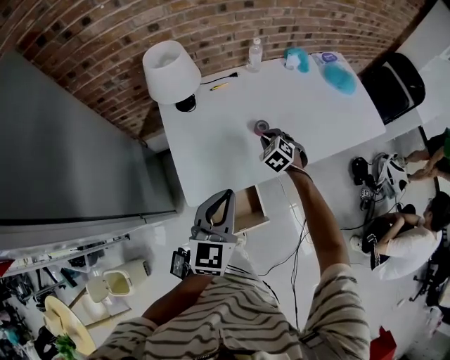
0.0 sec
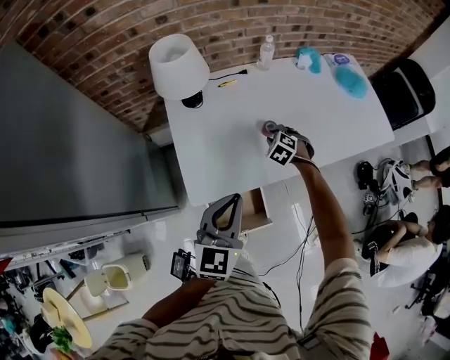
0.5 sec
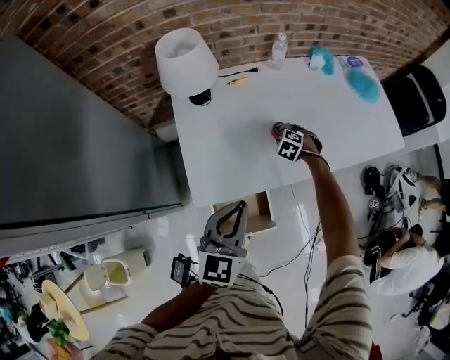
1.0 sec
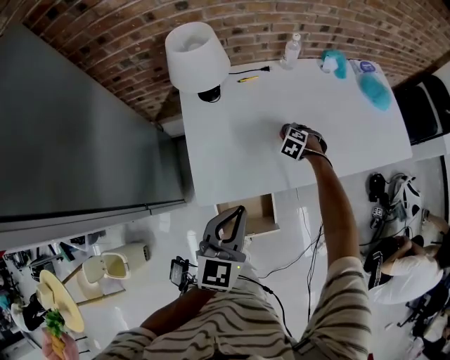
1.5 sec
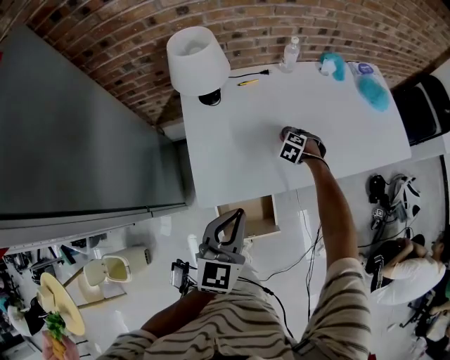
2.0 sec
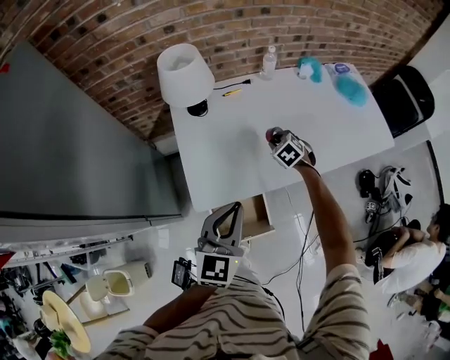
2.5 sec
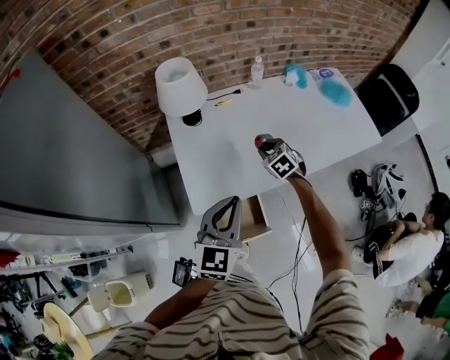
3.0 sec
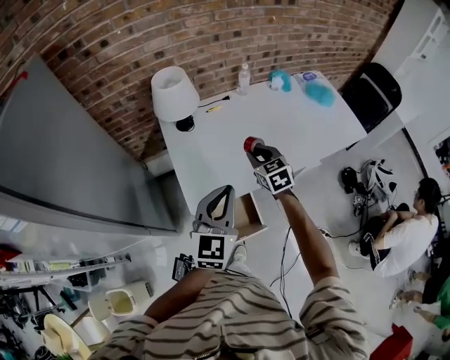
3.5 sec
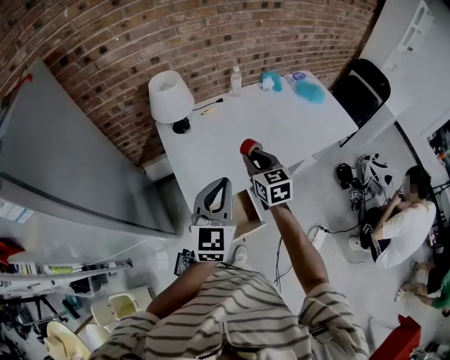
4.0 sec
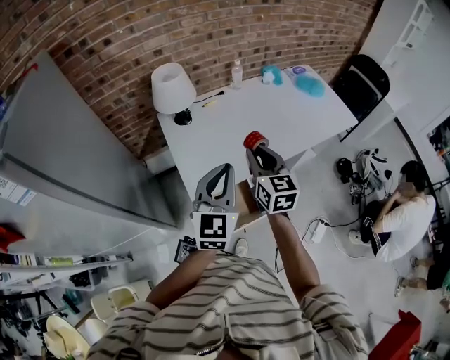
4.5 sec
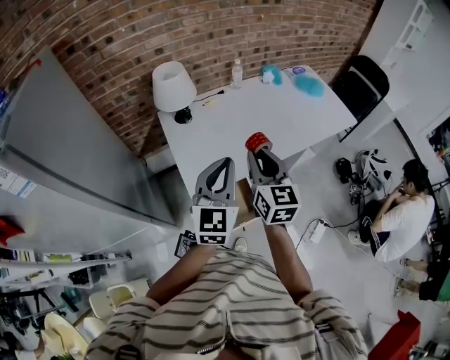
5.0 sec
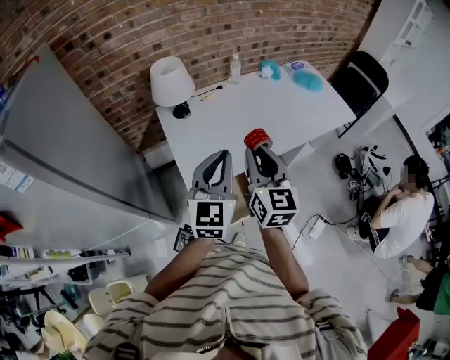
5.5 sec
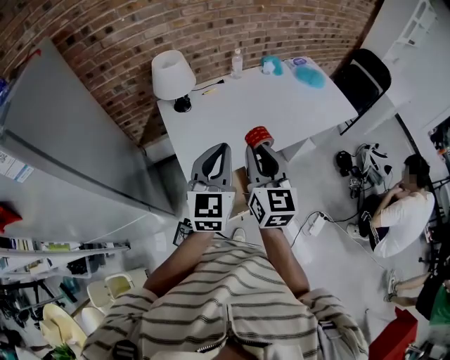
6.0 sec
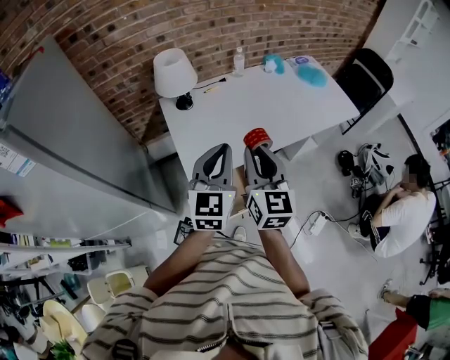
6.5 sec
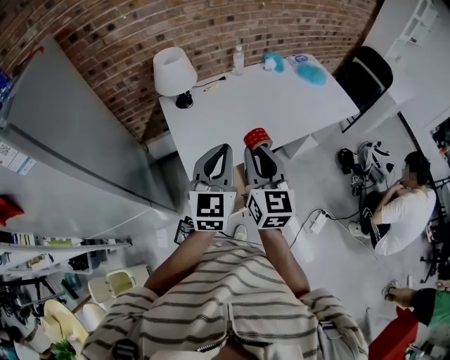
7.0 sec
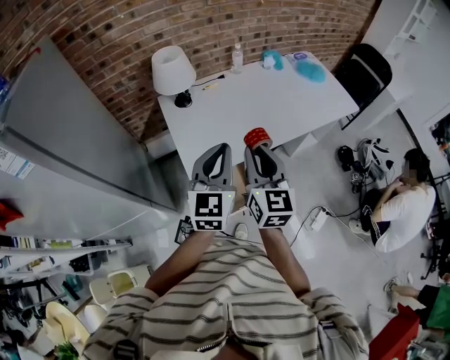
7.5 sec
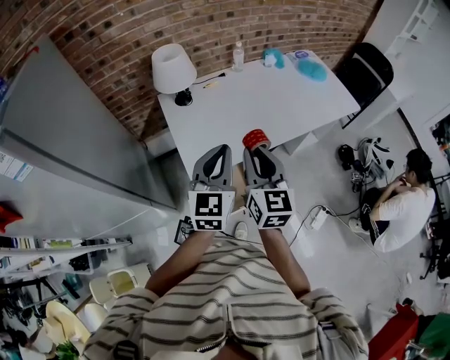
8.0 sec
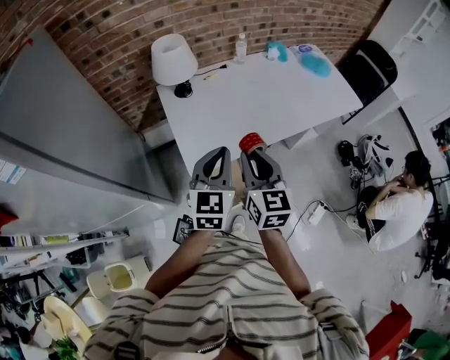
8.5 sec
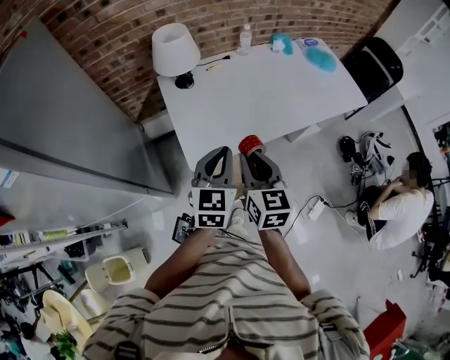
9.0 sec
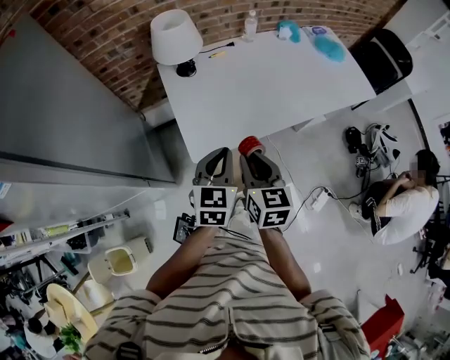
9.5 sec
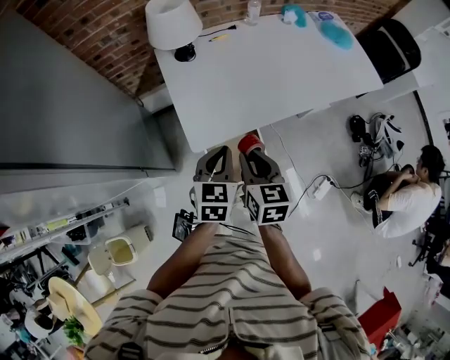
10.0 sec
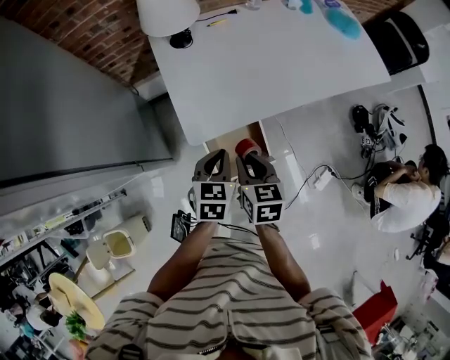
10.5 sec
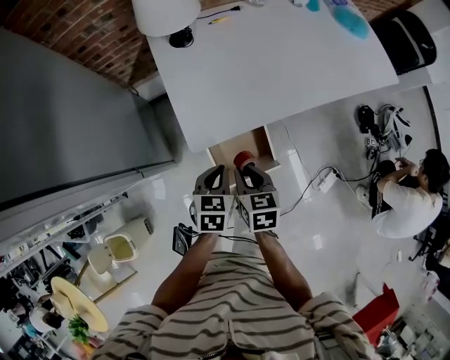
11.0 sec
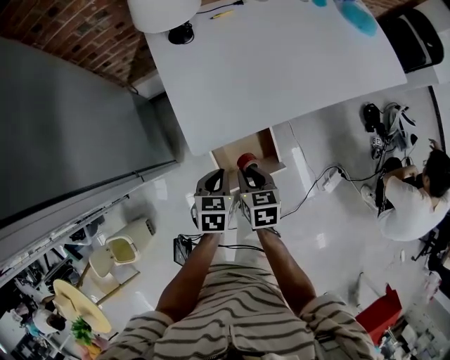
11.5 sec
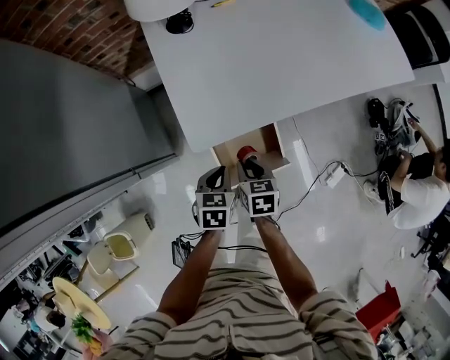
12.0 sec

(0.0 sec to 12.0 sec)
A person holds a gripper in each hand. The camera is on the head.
0.0 sec - 2.0 sec: The right gripper moves downward and forward, roughly 15 cm, and swivels approximately 30 degrees.
2.0 sec - 4.0 sec: The right gripper shifts roughly 40 cm upward and backward, and angles its fingers upward, by some 50 degrees. The left gripper is displaced upward by approximately 10 cm.
4.0 sec - 6.0 sec: The right gripper heads backward and upward, covering roughly 15 cm, and rotates some 20 degrees.
6.0 sec - 8.0 sec: The grippers move only a little.
8.0 sec - 10.0 sec: The grippers both shift downward by roughly 15 cm. The left gripper changes its angle by about 30 degrees; the right gripper swivels about 30 degrees.
10.0 sec - 12.0 sec: Both grippers travel together downward, some 25 cm. The left gripper turns by some 30 degrees, while the right gripper swivels roughly 20 degrees.

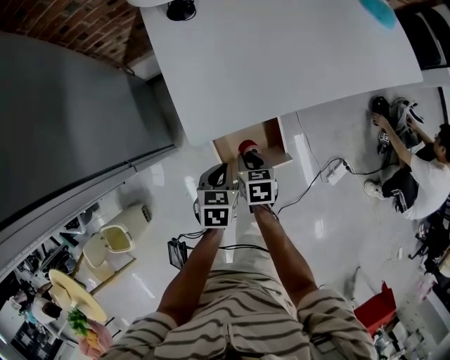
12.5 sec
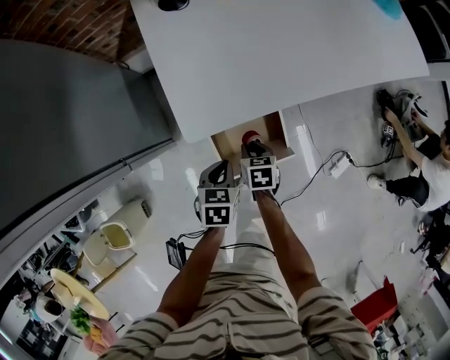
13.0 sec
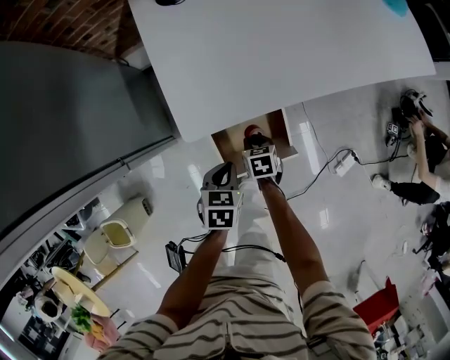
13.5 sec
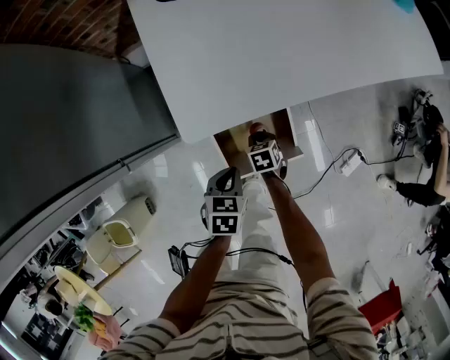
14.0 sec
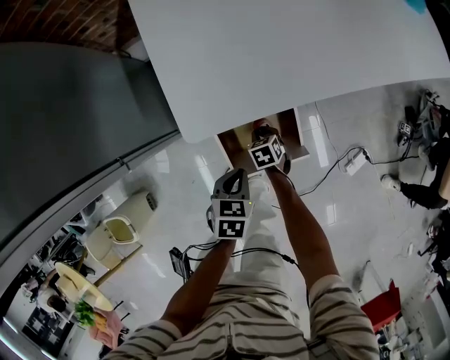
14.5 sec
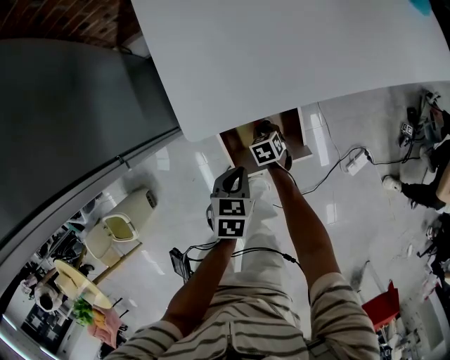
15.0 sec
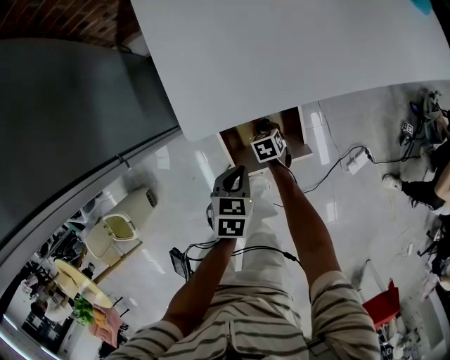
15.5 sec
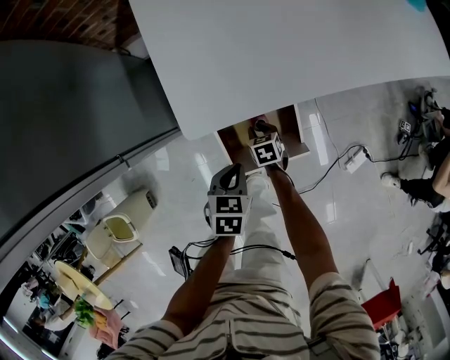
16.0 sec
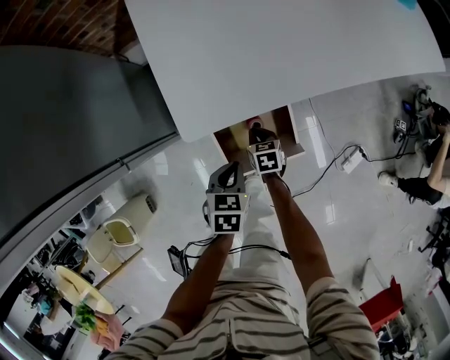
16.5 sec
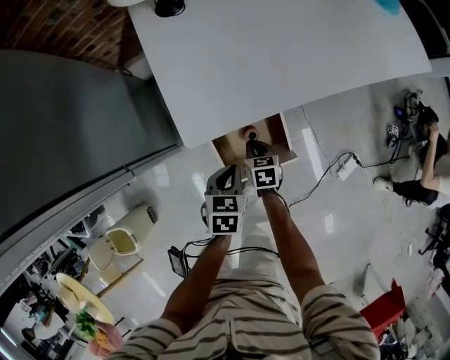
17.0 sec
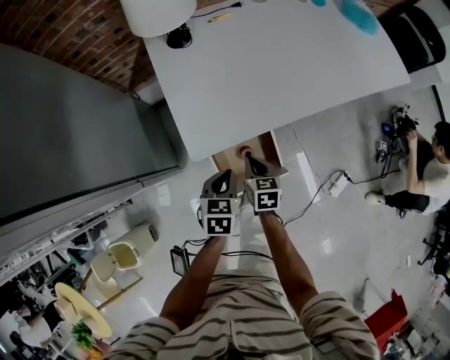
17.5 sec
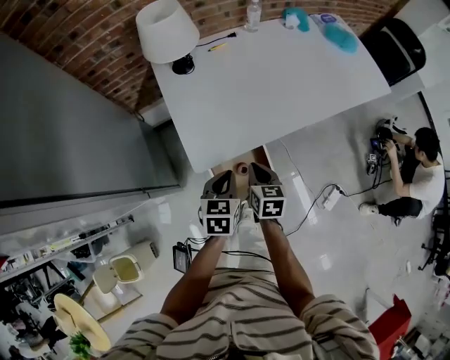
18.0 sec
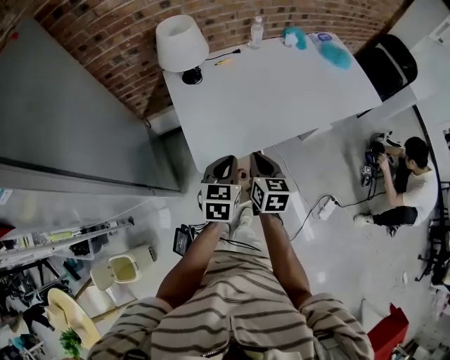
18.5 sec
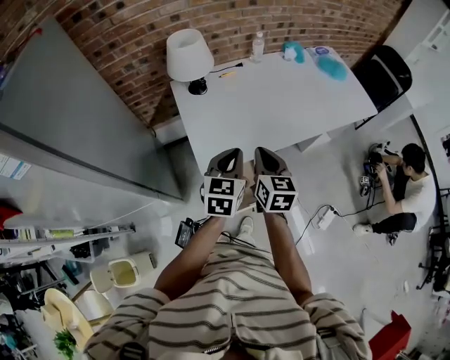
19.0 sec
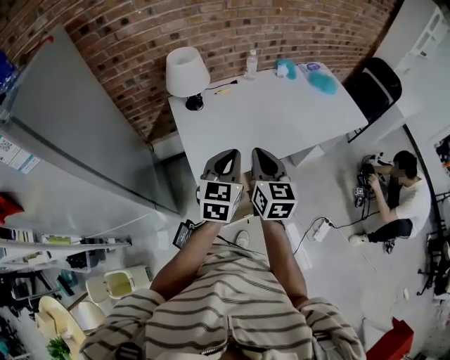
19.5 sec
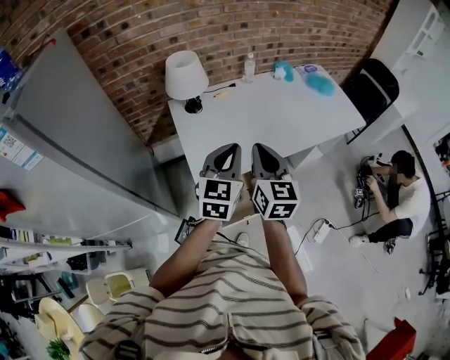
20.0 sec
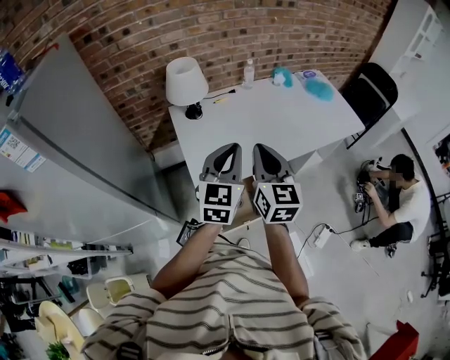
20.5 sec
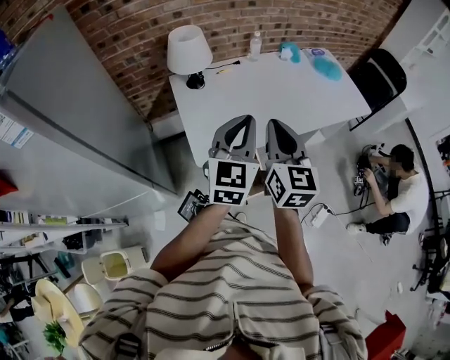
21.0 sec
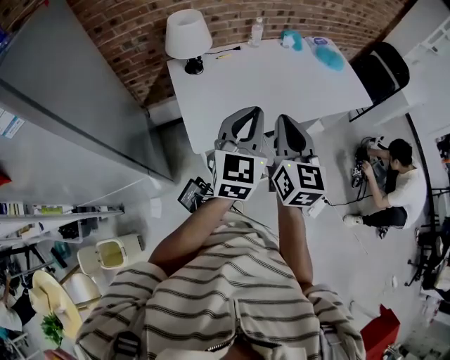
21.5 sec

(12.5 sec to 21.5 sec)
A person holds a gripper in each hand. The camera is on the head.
12.5 sec - 14.5 sec: The right gripper travels downward by some 20 cm, and changes its angle by some 20 degrees, while the left gripper shifts approximately 5 cm downward.
14.5 sec - 17.0 sec: The left gripper heads upward, covering some 5 cm. The right gripper is displaced upward by roughly 10 cm, and turns by some 20 degrees.
17.0 sec - 19.5 sec: Both grippers move upward, some 40 cm. The right gripper angles its fingers upward, by approximately 40 degrees, while the left gripper points its fingers approximately 40 degrees further upward.
19.5 sec - 21.5 sec: The grippers both shift upward by about 5 cm.

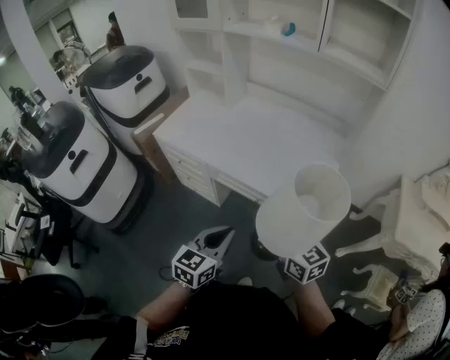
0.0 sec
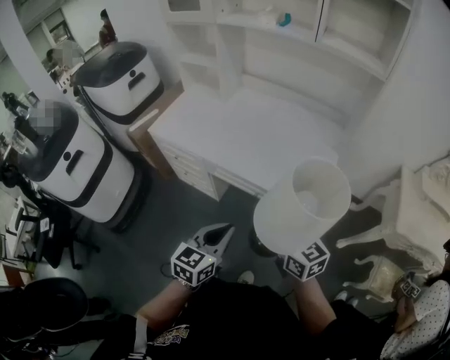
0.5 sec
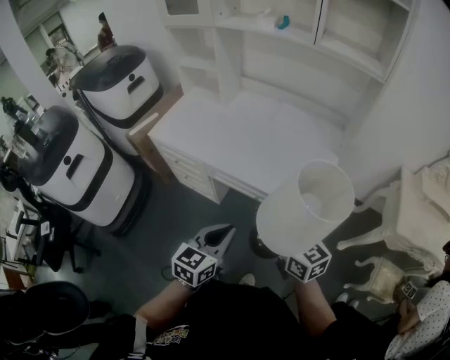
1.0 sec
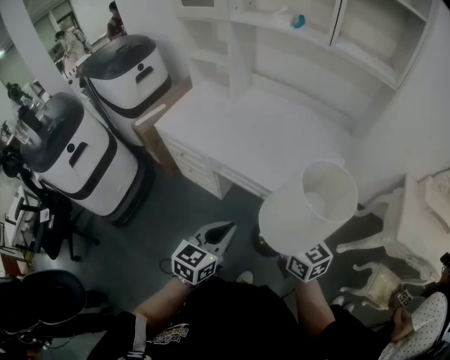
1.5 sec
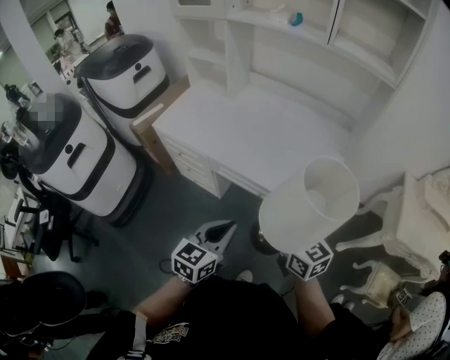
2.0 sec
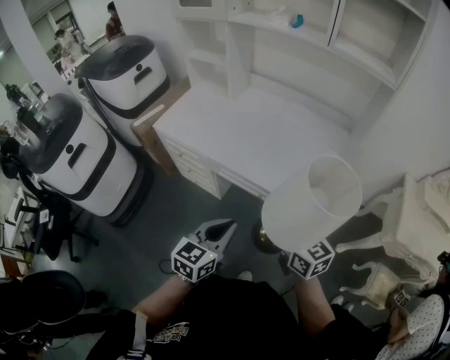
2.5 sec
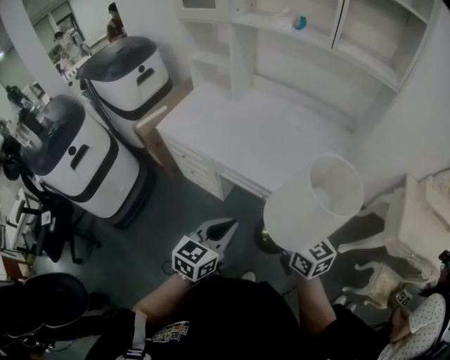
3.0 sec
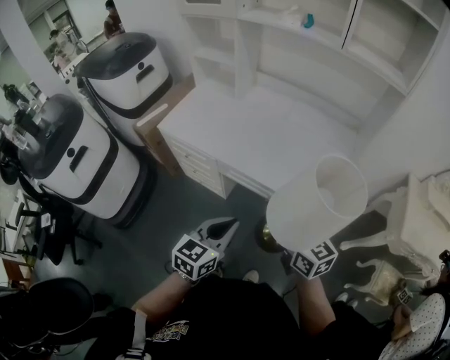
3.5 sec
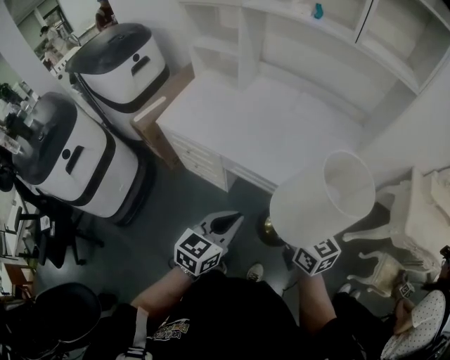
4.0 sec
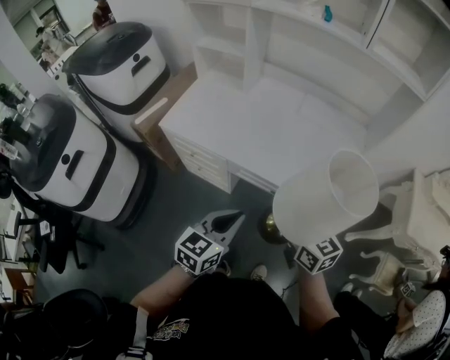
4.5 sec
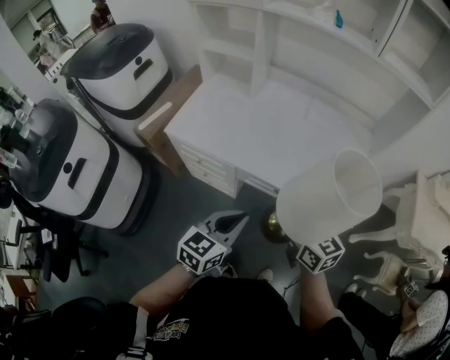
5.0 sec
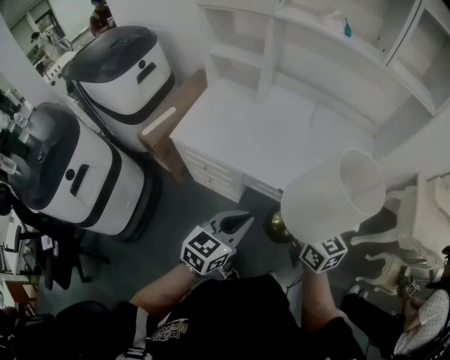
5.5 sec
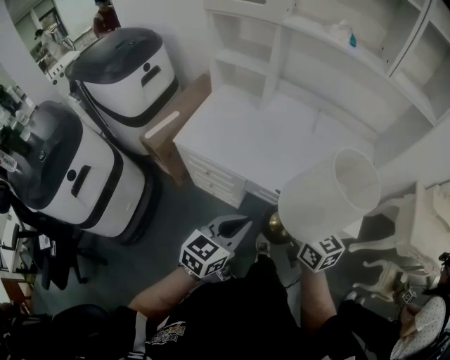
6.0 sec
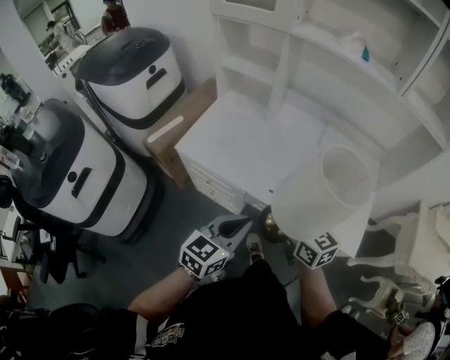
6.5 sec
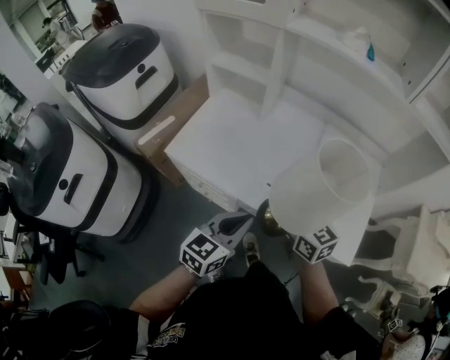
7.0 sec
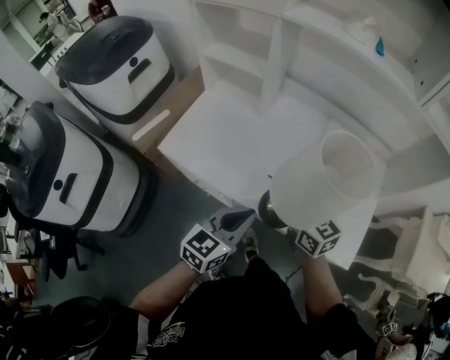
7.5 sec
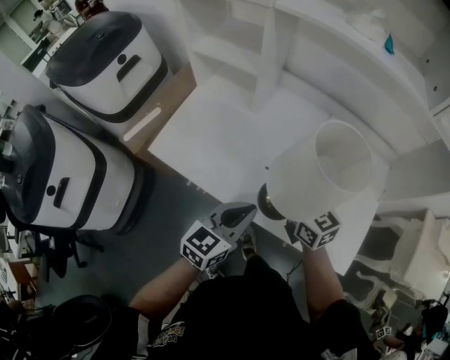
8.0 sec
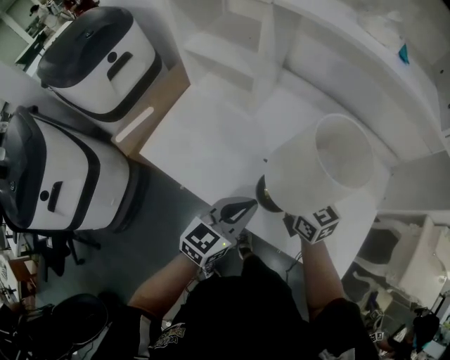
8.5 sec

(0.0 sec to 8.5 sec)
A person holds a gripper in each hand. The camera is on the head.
0.0 sec - 2.0 sec: The grippers make only small movements.
2.0 sec - 4.0 sec: The two grippers go some 10 cm to the left and forward.
4.0 sec - 6.5 sec: The two grippers go some 20 cm forward and to the left.
6.5 sec - 8.5 sec: The left gripper shifts approximately 20 cm forward and to the right. Meanwhile the right gripper travels forward by about 25 cm.
